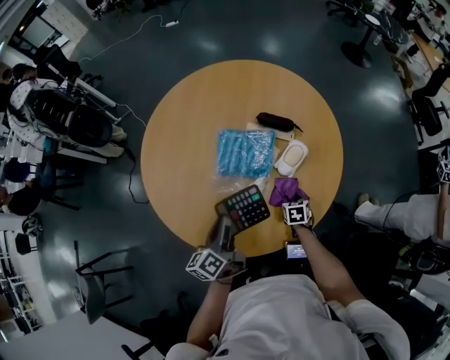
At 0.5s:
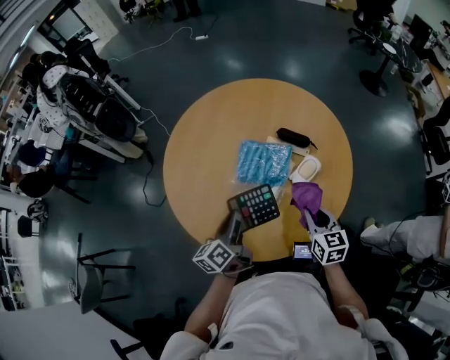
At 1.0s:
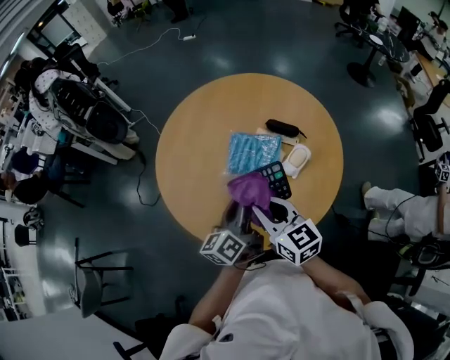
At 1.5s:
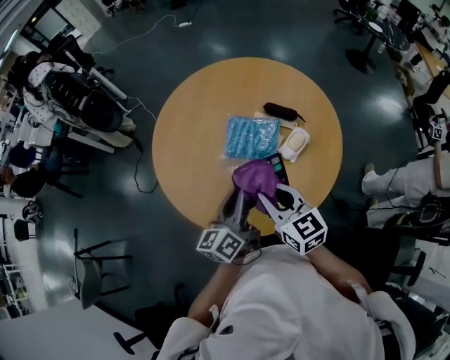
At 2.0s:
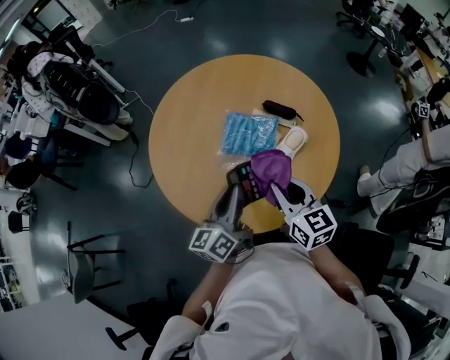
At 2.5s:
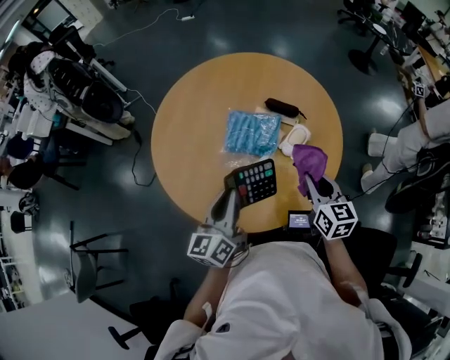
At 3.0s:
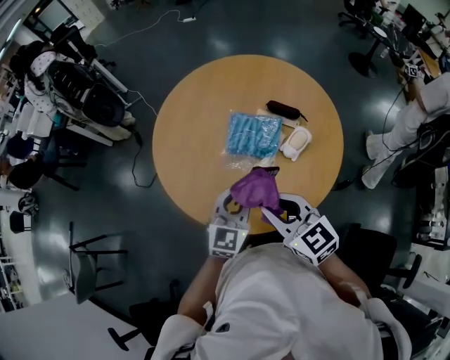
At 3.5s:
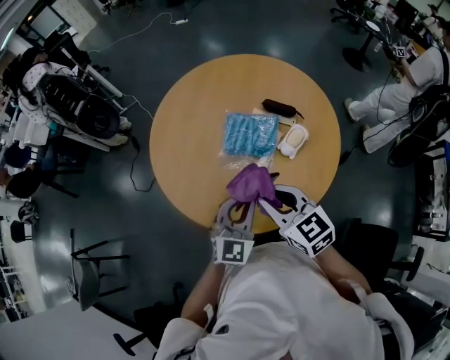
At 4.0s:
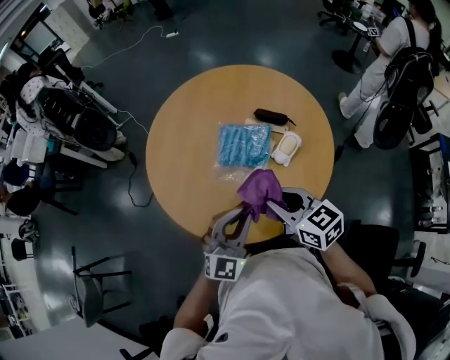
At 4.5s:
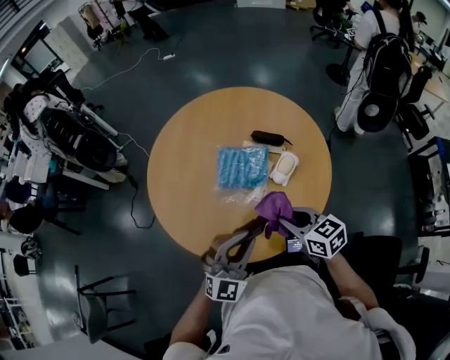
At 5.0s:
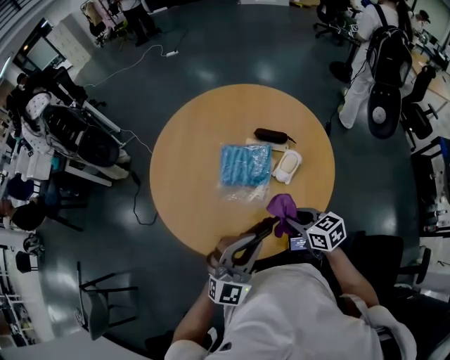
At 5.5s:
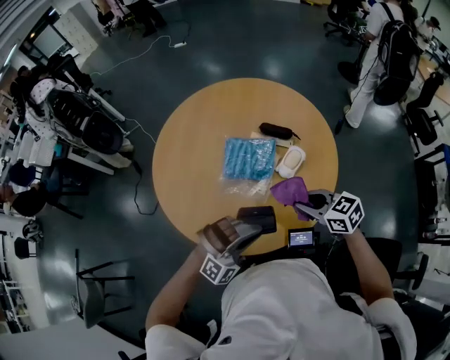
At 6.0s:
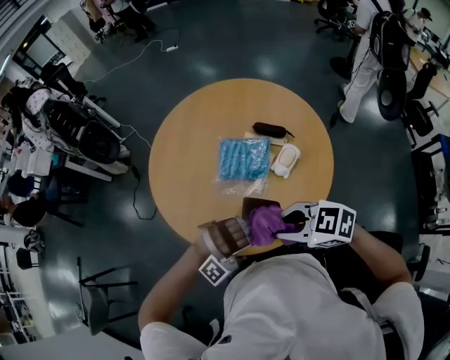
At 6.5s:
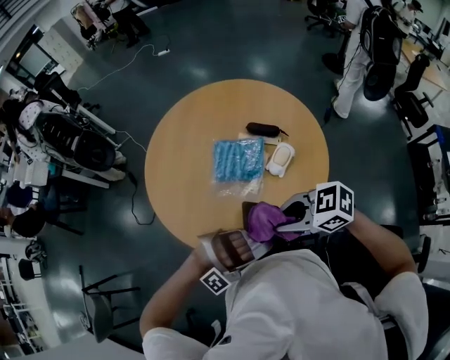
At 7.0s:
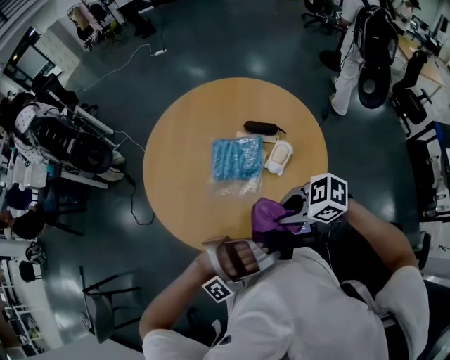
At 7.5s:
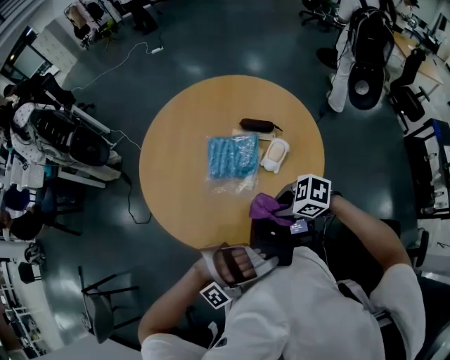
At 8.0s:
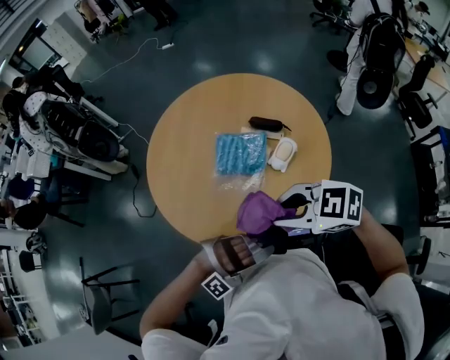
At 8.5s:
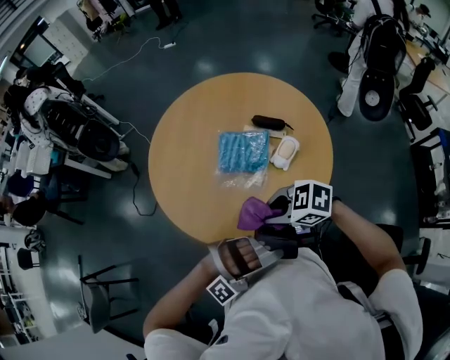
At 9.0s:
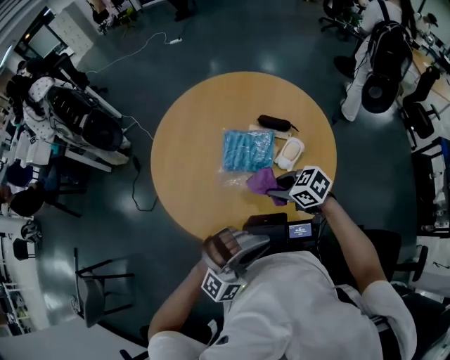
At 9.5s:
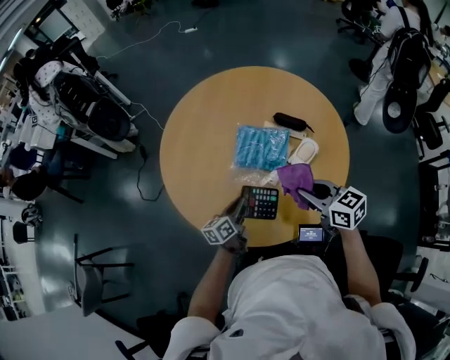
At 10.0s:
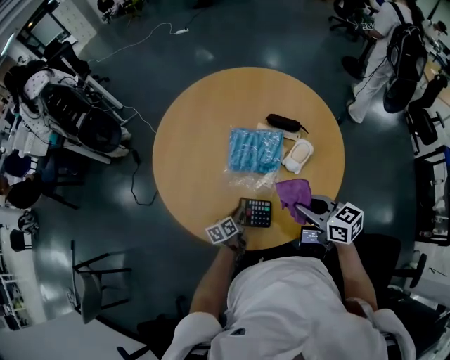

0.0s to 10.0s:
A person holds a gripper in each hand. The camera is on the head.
0.0s to 2.0s: The right gripper goes some 35 cm upward, points its fingers about 40 degrees further upward, and closes up. Meanwhile the left gripper goes roughly 10 cm upward.
2.0s to 4.0s: The left gripper shifts by about 5 cm, and twists about 60 degrees clockwise, seen from behind. Meanwhile the right gripper moves left and right over some 15 cm, changing direction 2 times.
4.0s to 6.0s: The left gripper changes place by approximately 10 cm, and twists some 70 degrees clockwise, seen from behind, while the right gripper reaches roughly 10 cm downward, then returns, and changes its angle by some 40 degrees.
6.0s to 8.0s: The right gripper reaches approximately 10 cm downward, then returns, while the left gripper changes place by some 5 cm.
8.0s to 10.0s: The left gripper is displaced downward by some 30 cm, and rolls counterclockwise, seen from behind, by approximately 160 degrees. The right gripper heads downward, covering approximately 15 cm, and rotates approximately 50 degrees.

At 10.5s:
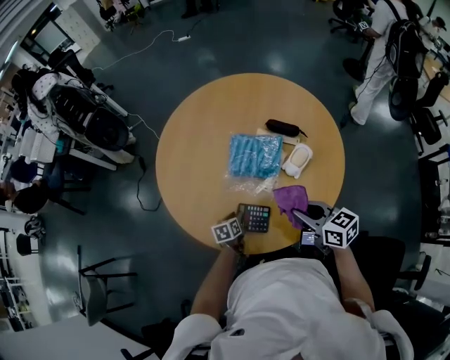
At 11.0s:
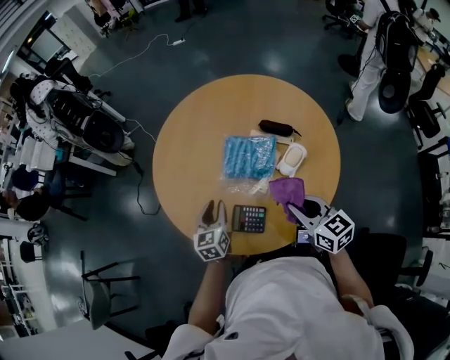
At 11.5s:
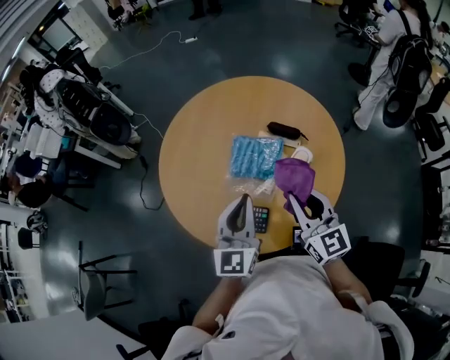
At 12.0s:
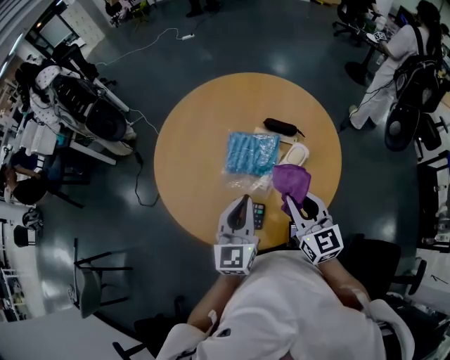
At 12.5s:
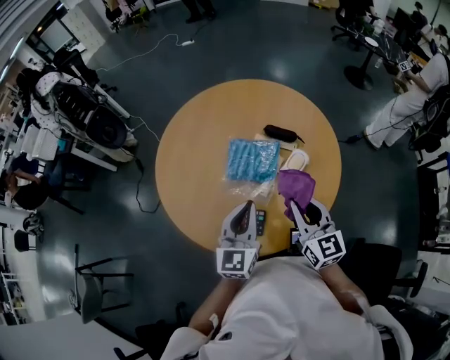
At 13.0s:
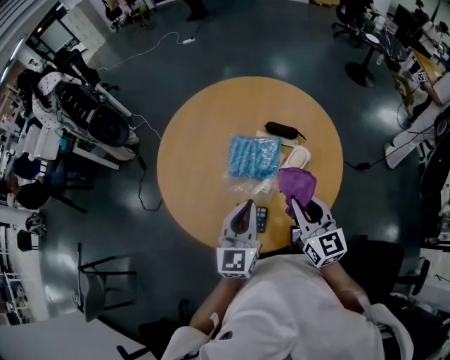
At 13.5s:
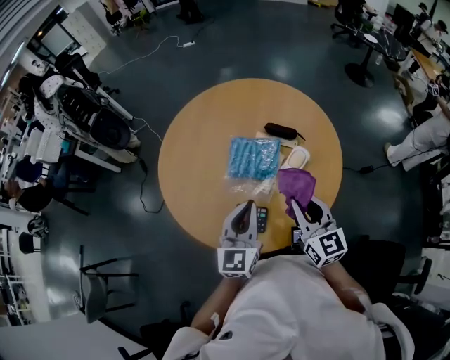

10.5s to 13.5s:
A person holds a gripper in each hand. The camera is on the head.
10.5s to 12.0s: The left gripper is displaced upward by about 35 cm, angles its fingers upward, by roughly 40 degrees, and closes, while the right gripper travels upward by approximately 10 cm, and swivels approximately 30 degrees.
12.0s to 13.5s: The grippers move only a little.

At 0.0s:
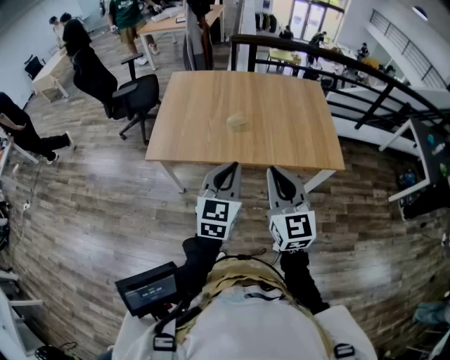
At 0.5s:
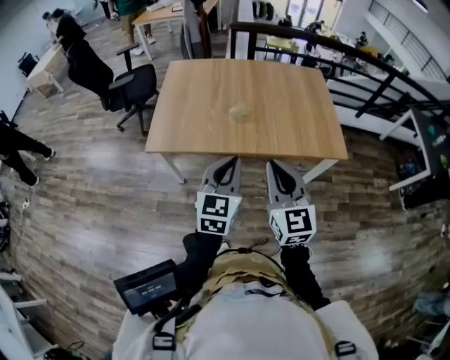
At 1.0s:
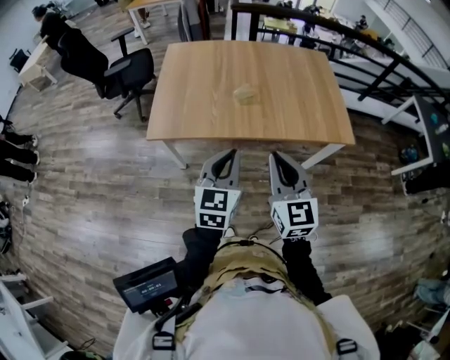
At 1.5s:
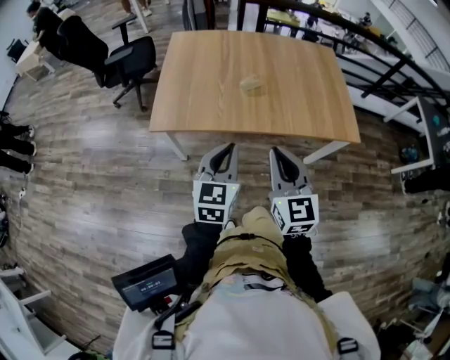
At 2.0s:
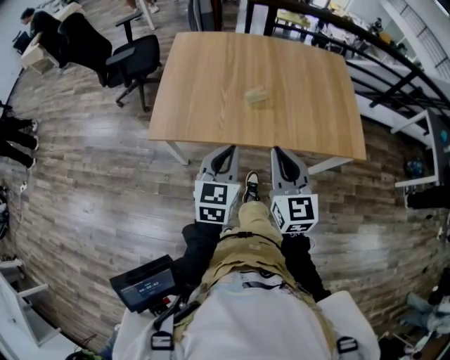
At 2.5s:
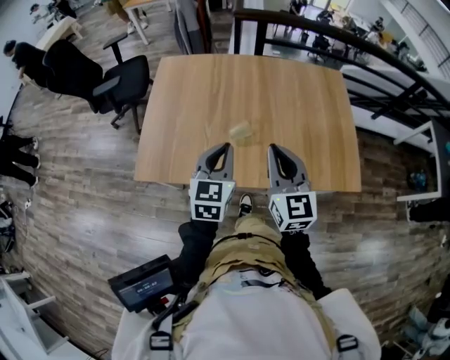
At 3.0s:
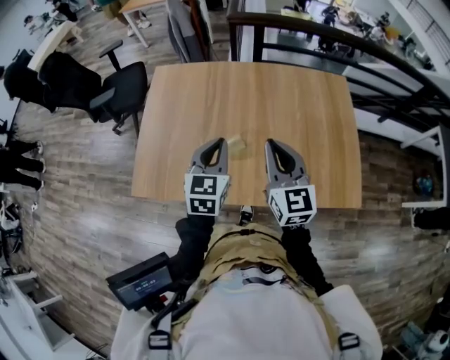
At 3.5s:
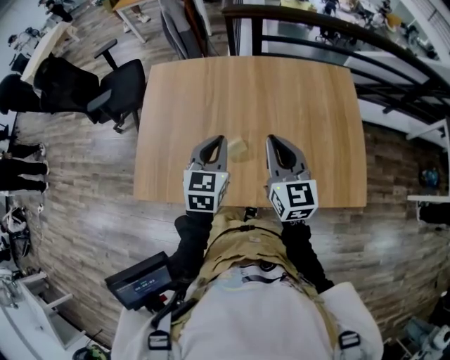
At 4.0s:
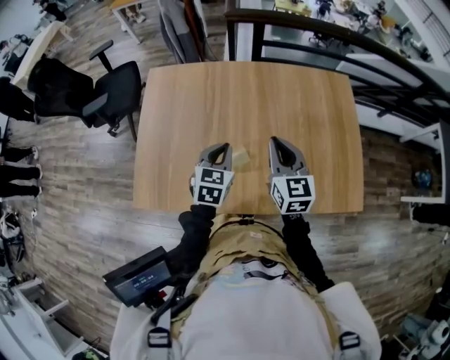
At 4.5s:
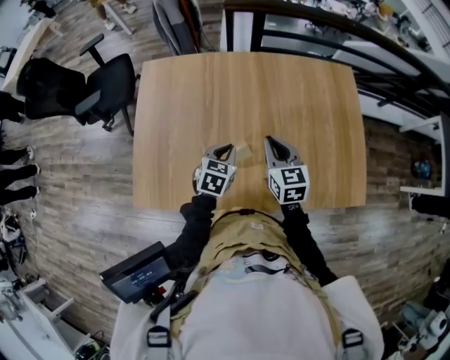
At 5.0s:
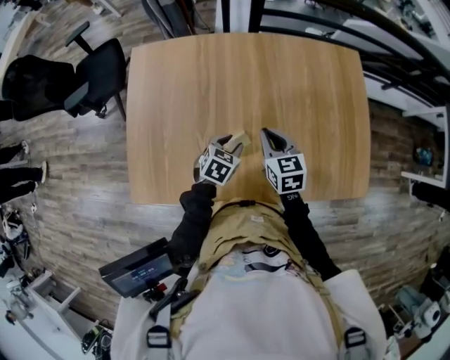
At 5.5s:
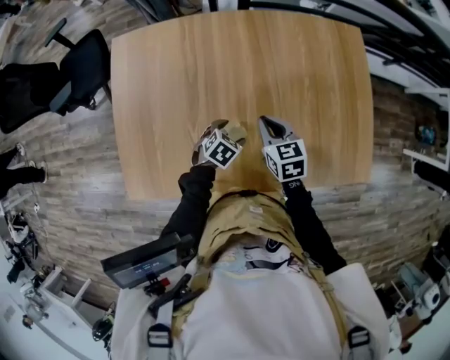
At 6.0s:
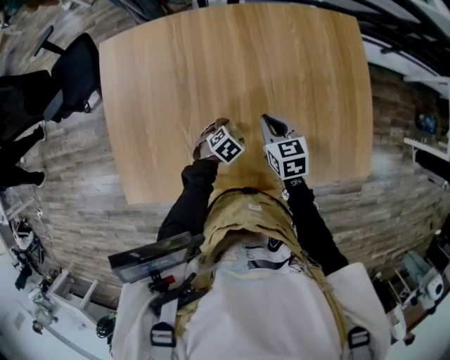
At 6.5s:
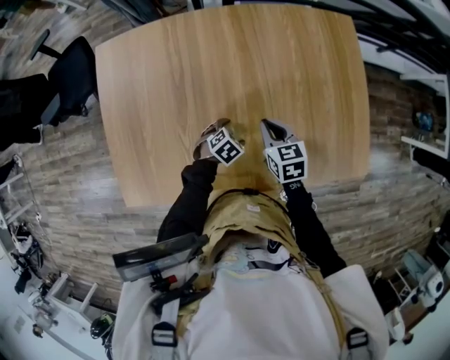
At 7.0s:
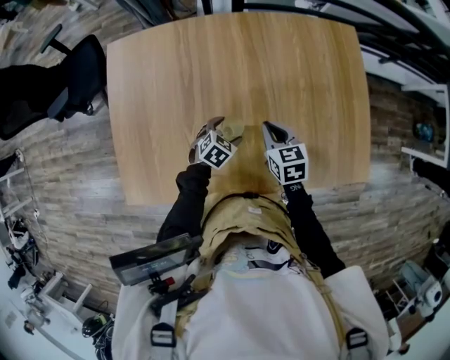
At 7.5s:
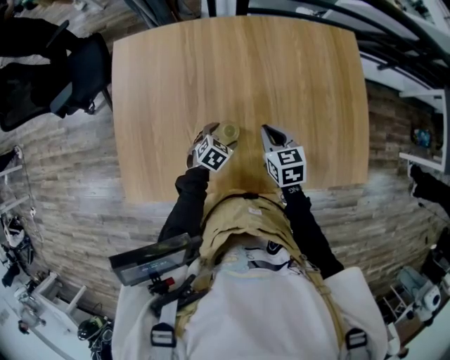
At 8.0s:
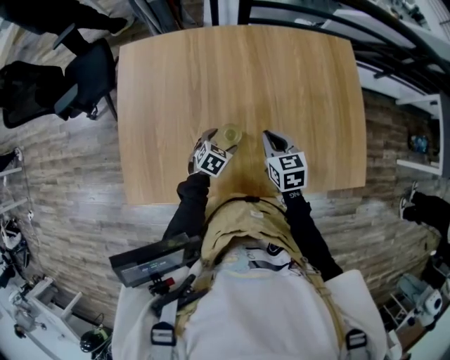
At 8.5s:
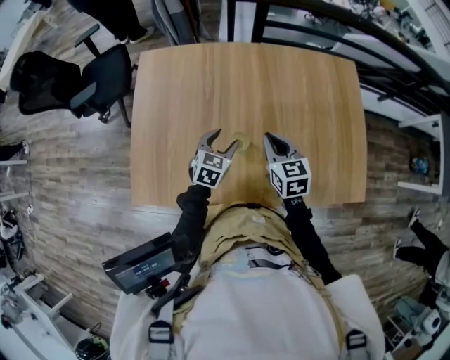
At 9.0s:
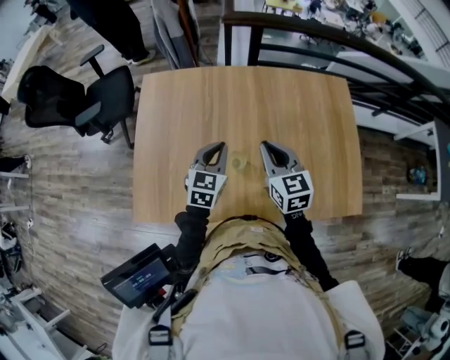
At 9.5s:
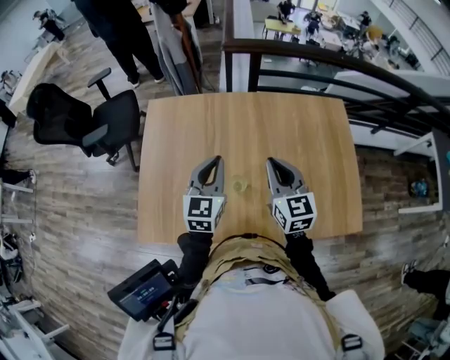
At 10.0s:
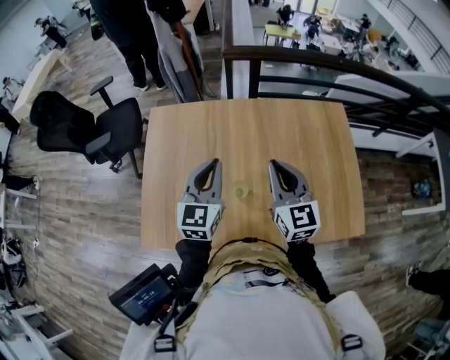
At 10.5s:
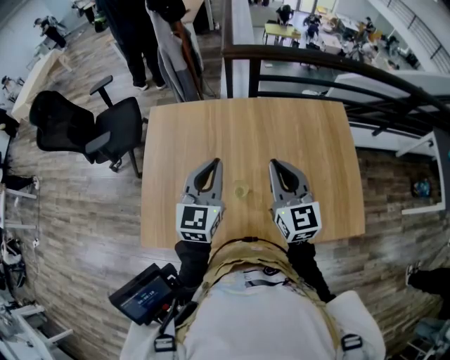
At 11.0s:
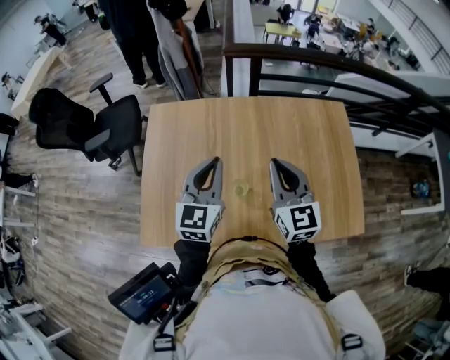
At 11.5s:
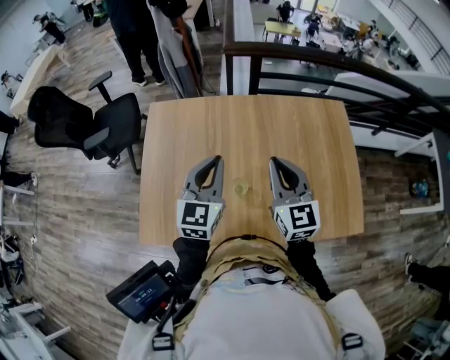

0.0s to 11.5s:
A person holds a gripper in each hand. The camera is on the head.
0.0s to 2.0s: The left gripper travels forward, to the left and downward by some 15 cm, while the right gripper moves forward, downward and to the left, some 15 cm.
2.0s to 4.0s: The two grippers go some 35 cm forward.
4.0s to 6.0s: The grippers both shift downward by some 25 cm. The right gripper turns by roughly 30 degrees, while the left gripper tilts its fingers roughly 30 degrees downward, and opens.
6.0s to 7.5s: The left gripper ends up some 5 cm from where it was.
7.5s to 9.5s: The right gripper goes some 20 cm upward, and changes its angle by roughly 30 degrees. Meanwhile the left gripper shifts roughly 35 cm upward, points its fingers roughly 50 degrees further upward, and closes up.
9.5s to 11.5s: The left gripper moves upward, roughly 5 cm.

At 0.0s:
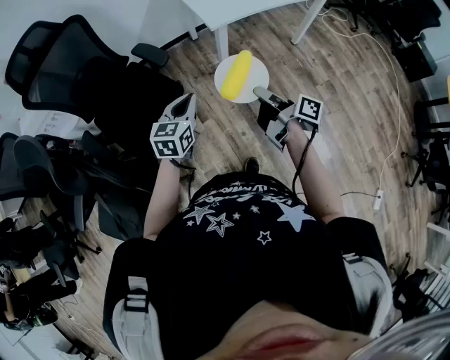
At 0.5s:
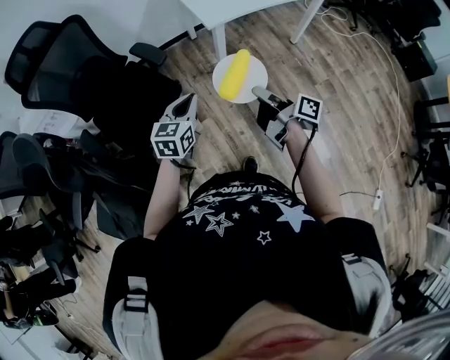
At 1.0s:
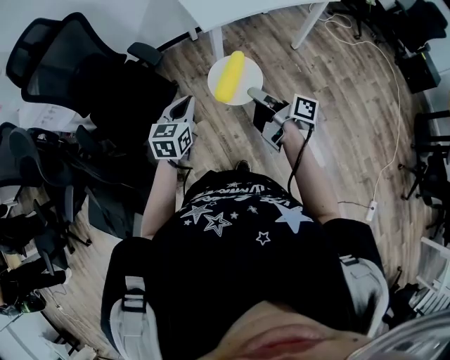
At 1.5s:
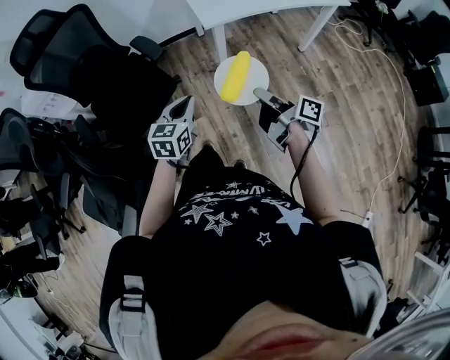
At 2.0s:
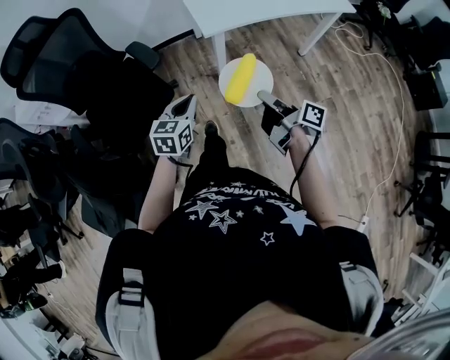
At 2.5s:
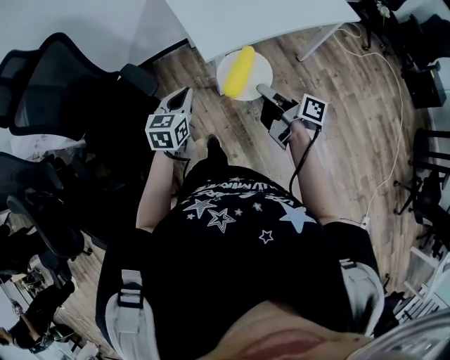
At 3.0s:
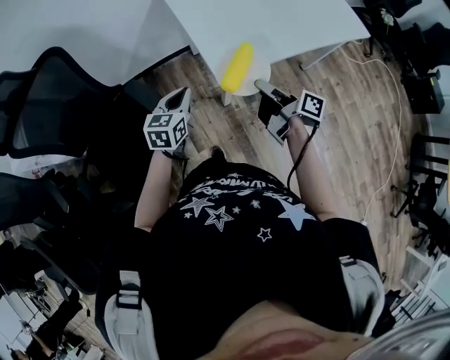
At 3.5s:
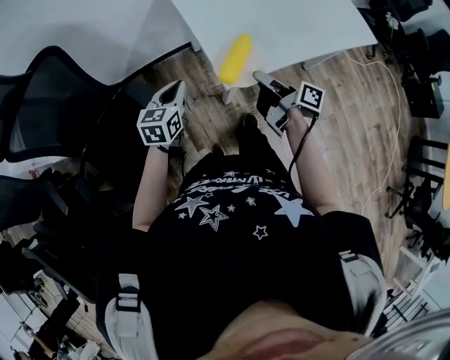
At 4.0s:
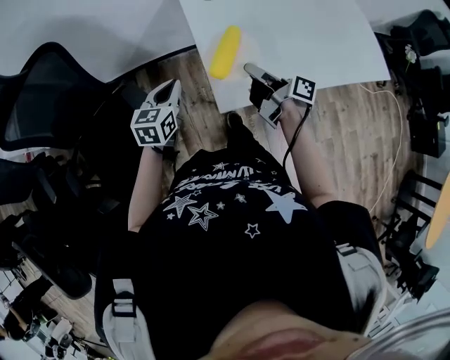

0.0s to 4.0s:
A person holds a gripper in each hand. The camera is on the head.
0.0s to 2.0s: Both grippers move to the right and forward, approximately 10 cm.
2.0s to 4.0s: The two grippers travel together, forward, some 50 cm.
